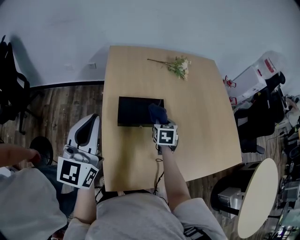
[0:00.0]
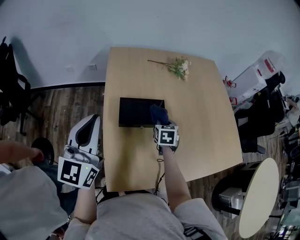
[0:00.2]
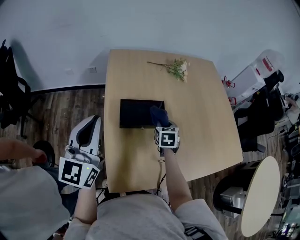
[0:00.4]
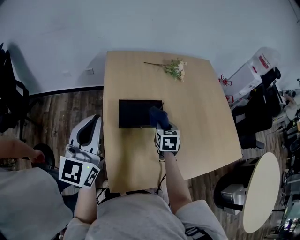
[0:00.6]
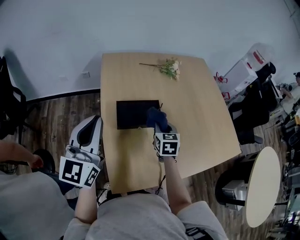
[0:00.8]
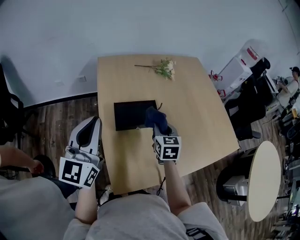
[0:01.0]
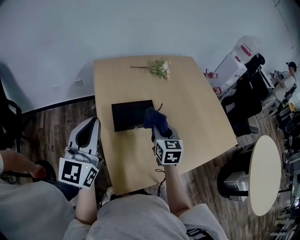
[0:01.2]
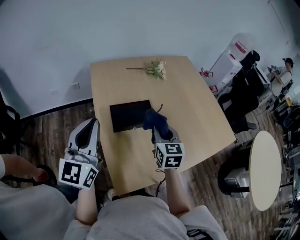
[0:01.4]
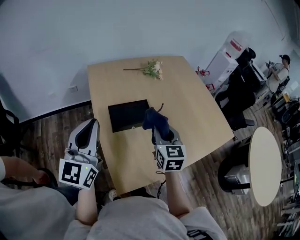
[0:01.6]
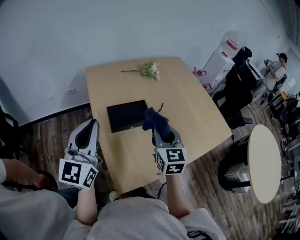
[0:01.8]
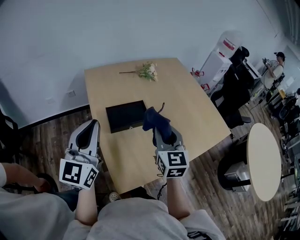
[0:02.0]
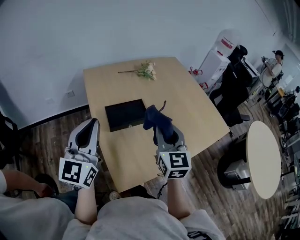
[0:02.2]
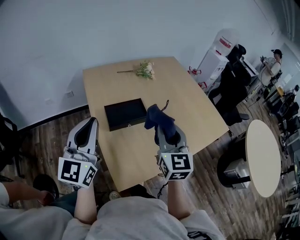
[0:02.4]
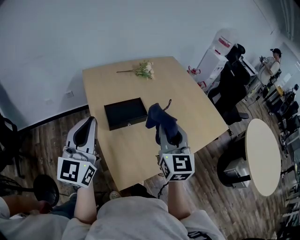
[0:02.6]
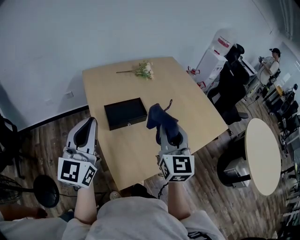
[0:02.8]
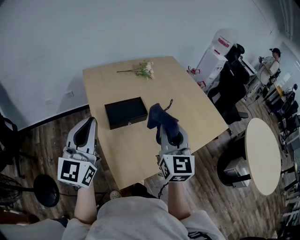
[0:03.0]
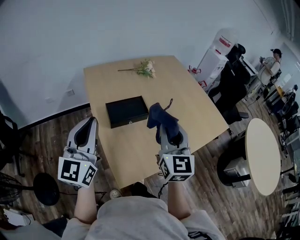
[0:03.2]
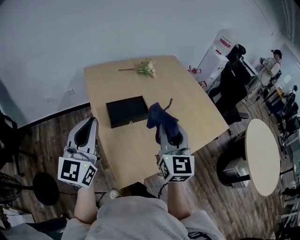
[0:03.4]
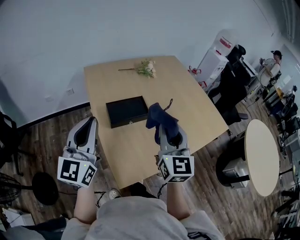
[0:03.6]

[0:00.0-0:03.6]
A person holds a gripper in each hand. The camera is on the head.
0:00.0 to 0:01.8: The right gripper travels upward and backward by roughly 25 cm, and tips its fingers upward by approximately 30 degrees; the left gripper ends up some 5 cm from where it was.
0:01.8 to 0:03.6: The right gripper is displaced upward and backward by about 10 cm.

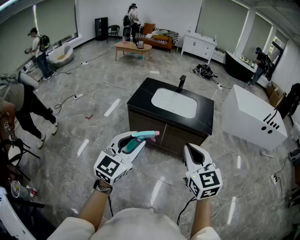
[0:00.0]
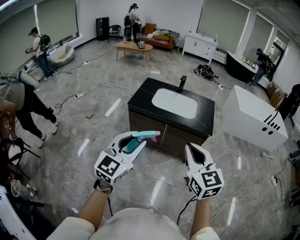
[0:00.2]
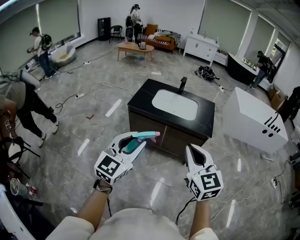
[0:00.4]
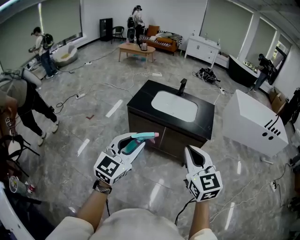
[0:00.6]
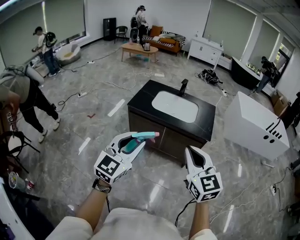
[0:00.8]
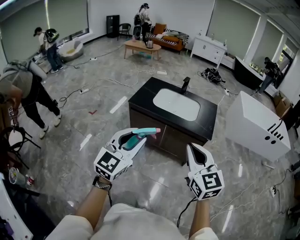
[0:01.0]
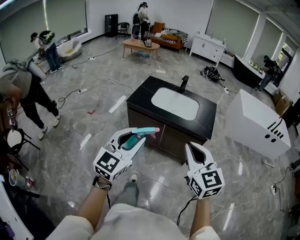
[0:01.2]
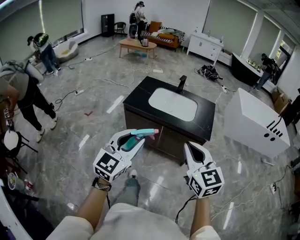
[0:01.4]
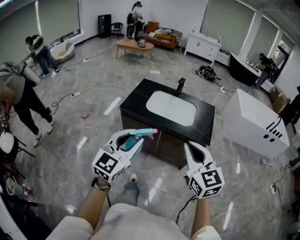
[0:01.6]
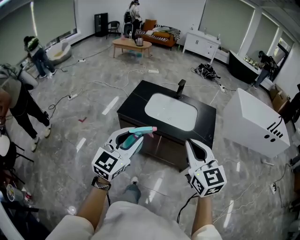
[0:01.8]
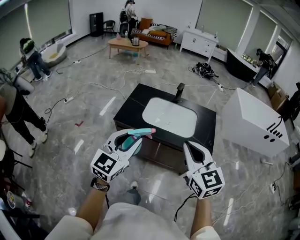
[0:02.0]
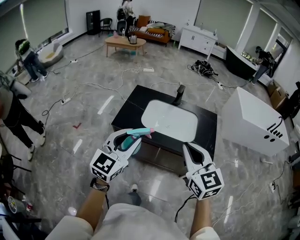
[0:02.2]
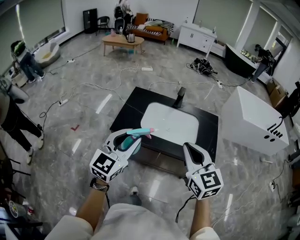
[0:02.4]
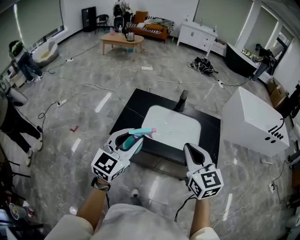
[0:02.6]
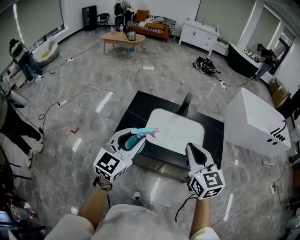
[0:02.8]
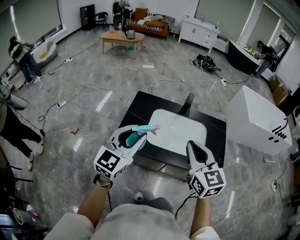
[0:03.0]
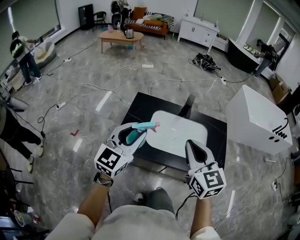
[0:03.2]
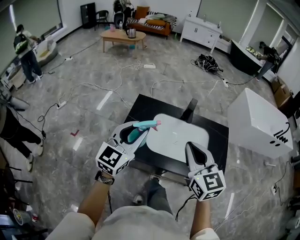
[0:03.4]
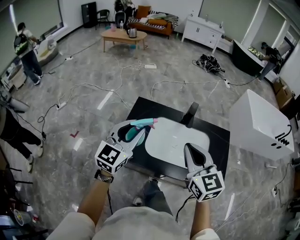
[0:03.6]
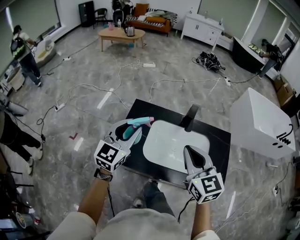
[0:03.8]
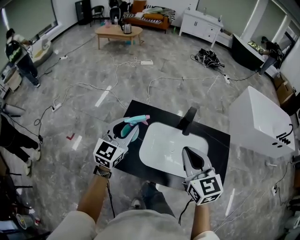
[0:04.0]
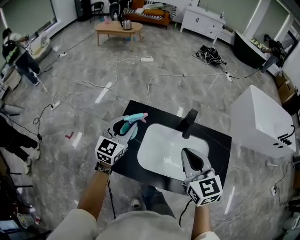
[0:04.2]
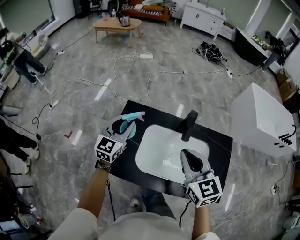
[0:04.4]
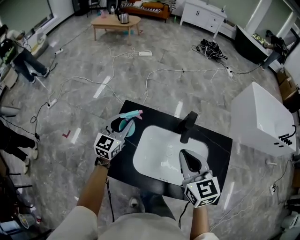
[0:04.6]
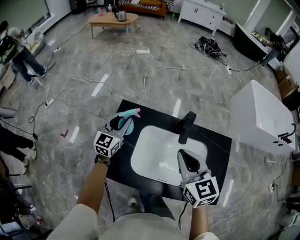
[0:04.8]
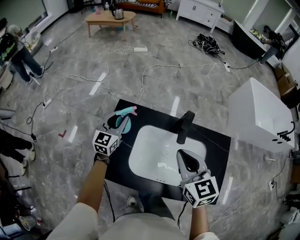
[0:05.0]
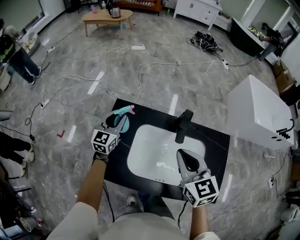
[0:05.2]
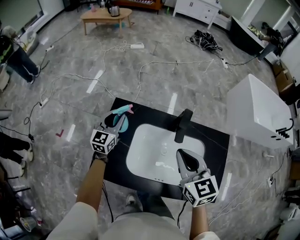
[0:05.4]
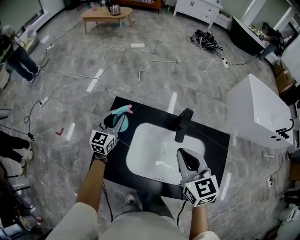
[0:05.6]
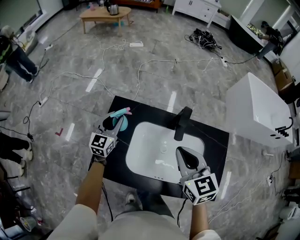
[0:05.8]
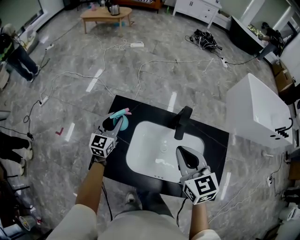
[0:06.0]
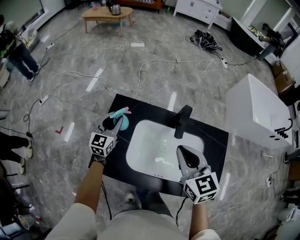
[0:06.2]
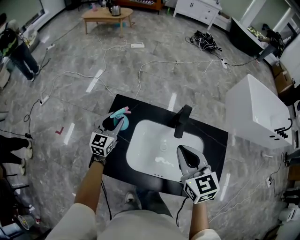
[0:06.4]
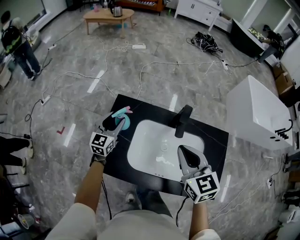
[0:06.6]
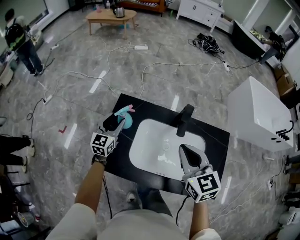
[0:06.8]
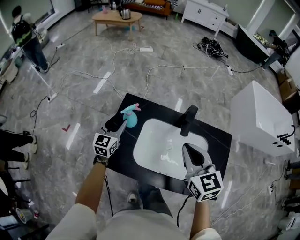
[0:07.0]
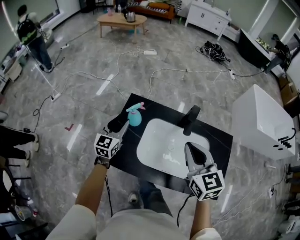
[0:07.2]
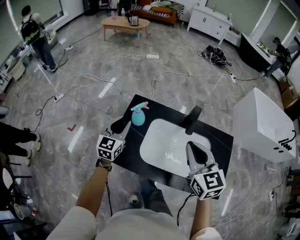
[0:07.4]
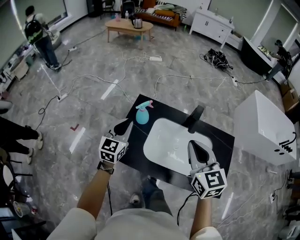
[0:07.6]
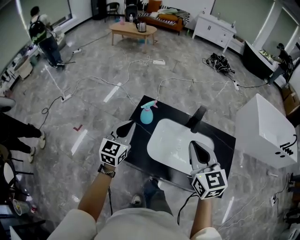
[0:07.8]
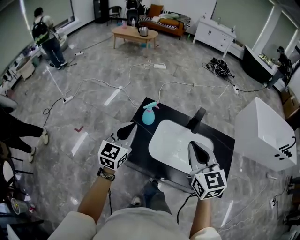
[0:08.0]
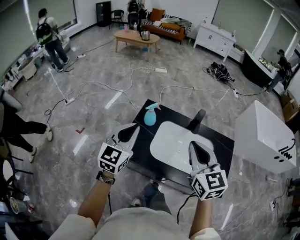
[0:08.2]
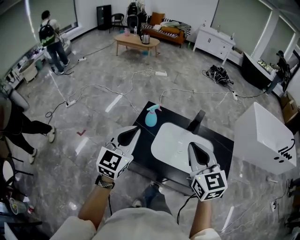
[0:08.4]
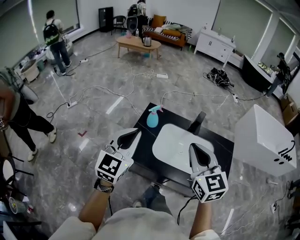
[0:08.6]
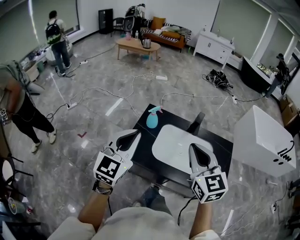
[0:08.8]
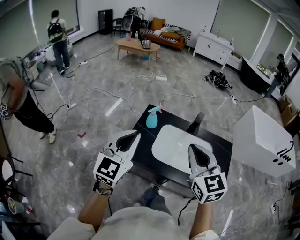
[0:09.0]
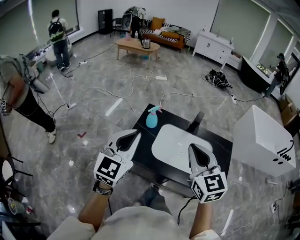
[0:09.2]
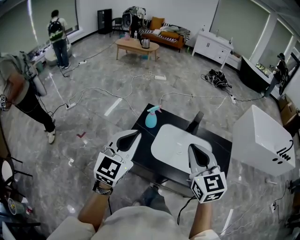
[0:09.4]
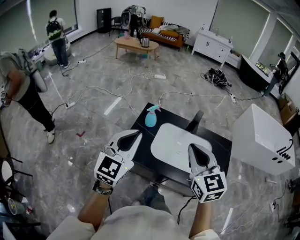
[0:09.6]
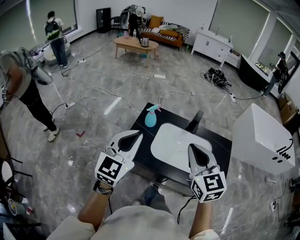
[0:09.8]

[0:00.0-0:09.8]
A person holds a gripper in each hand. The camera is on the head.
0:00.0 to 0:01.4: The grippers both shift forward by about 5 cm.
0:01.4 to 0:02.8: The two grippers go approximately 40 cm forward.
0:02.8 to 0:04.2: The two grippers go about 25 cm forward.
0:04.2 to 0:05.6: The right gripper heads forward and downward, covering approximately 10 cm. The left gripper goes some 15 cm downward and forward.
0:05.6 to 0:07.0: The left gripper is displaced backward by roughly 5 cm.
0:07.0 to 0:08.4: The right gripper goes roughly 20 cm backward, upward and to the left; the left gripper travels backward and upward by about 30 cm, and closes up.
0:08.4 to 0:09.8: The left gripper changes place by approximately 5 cm.

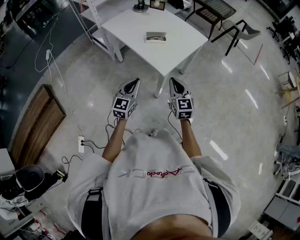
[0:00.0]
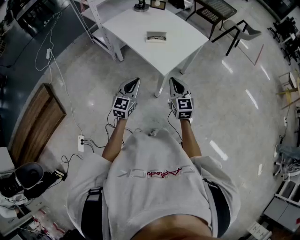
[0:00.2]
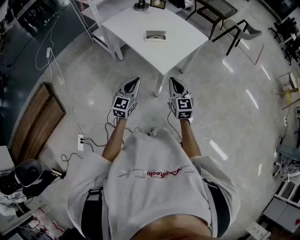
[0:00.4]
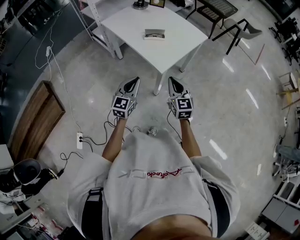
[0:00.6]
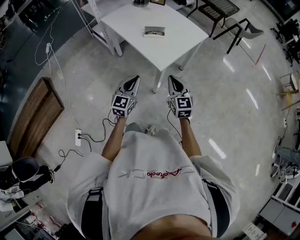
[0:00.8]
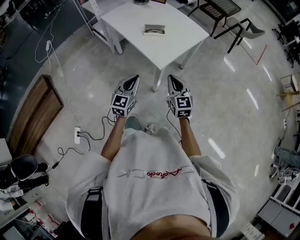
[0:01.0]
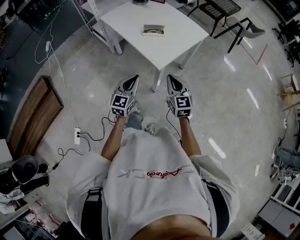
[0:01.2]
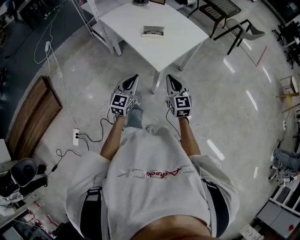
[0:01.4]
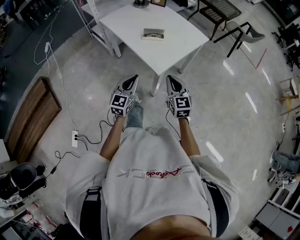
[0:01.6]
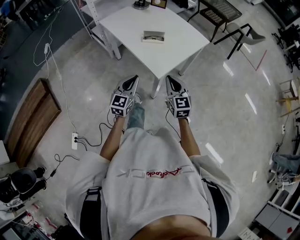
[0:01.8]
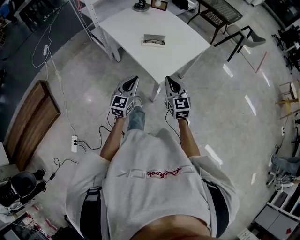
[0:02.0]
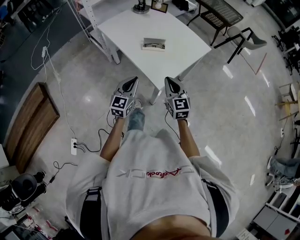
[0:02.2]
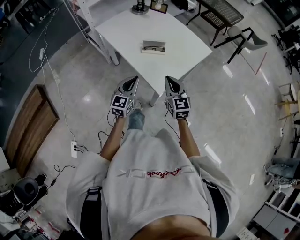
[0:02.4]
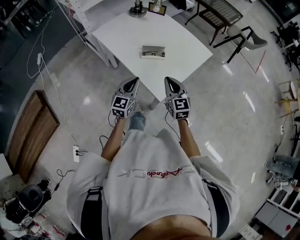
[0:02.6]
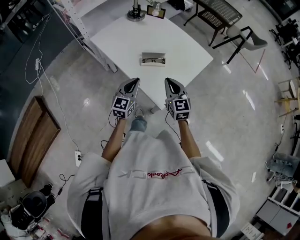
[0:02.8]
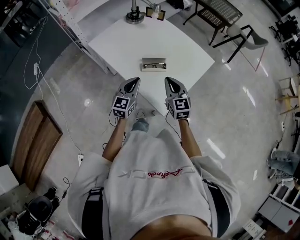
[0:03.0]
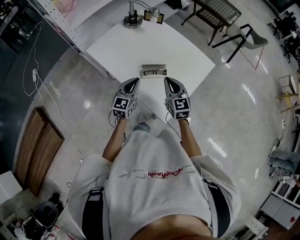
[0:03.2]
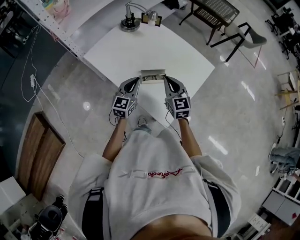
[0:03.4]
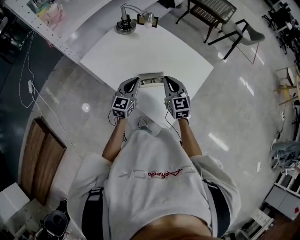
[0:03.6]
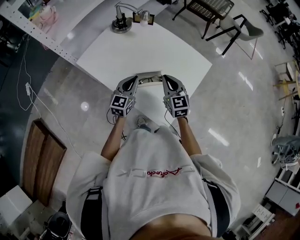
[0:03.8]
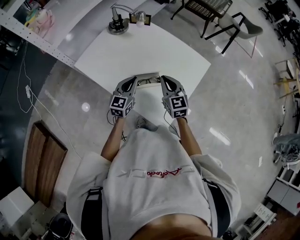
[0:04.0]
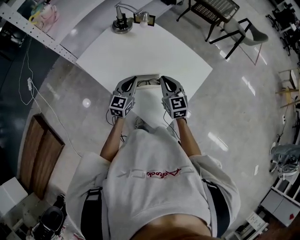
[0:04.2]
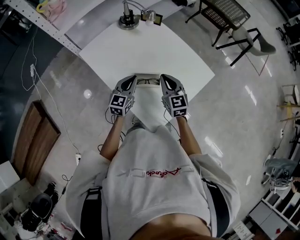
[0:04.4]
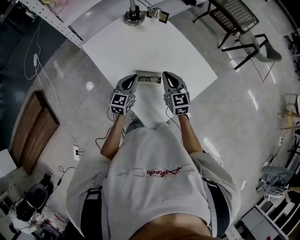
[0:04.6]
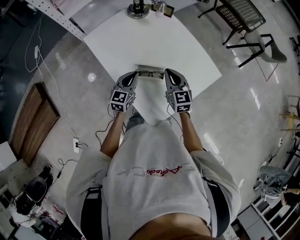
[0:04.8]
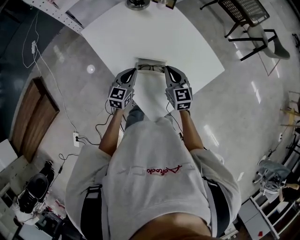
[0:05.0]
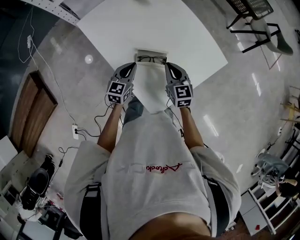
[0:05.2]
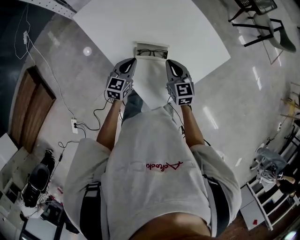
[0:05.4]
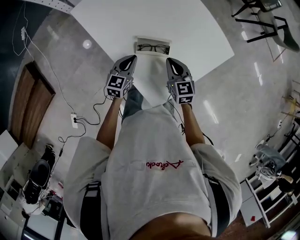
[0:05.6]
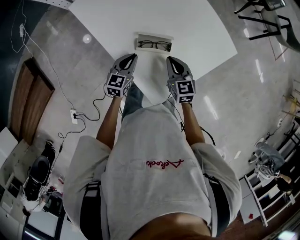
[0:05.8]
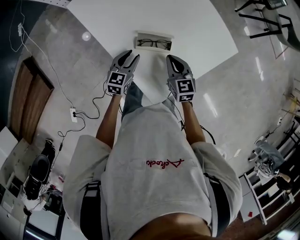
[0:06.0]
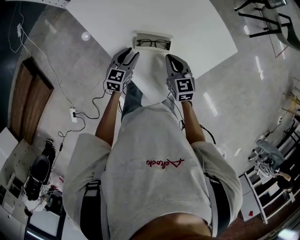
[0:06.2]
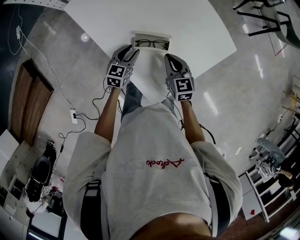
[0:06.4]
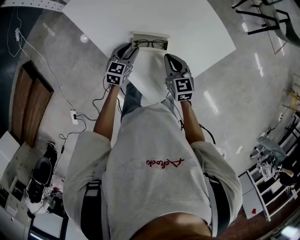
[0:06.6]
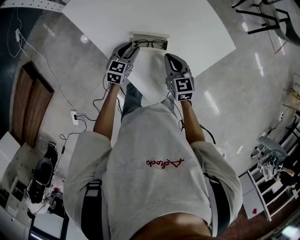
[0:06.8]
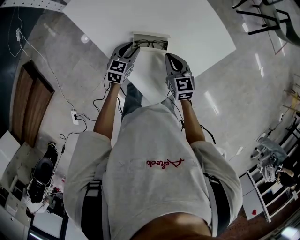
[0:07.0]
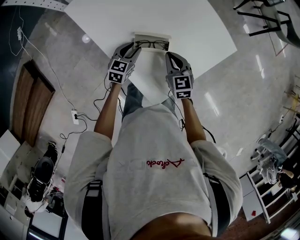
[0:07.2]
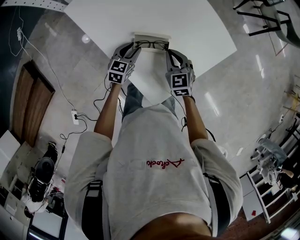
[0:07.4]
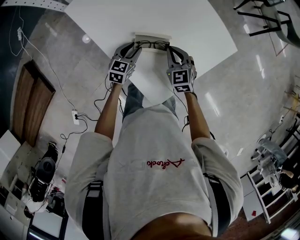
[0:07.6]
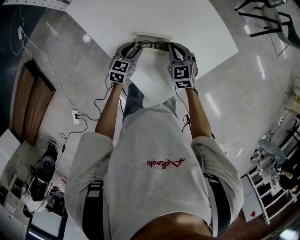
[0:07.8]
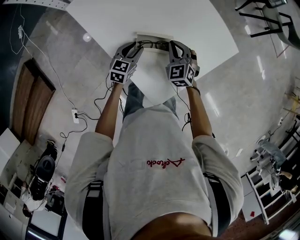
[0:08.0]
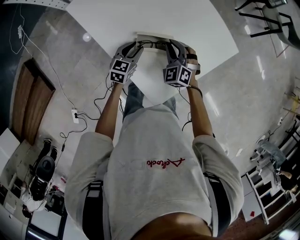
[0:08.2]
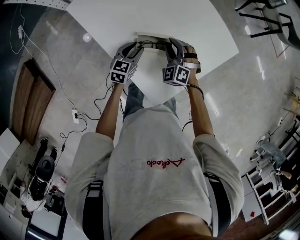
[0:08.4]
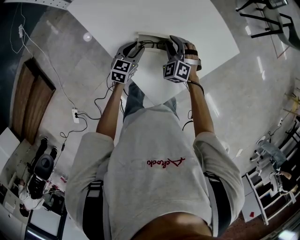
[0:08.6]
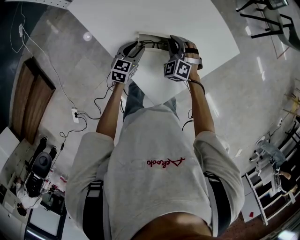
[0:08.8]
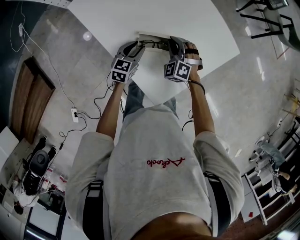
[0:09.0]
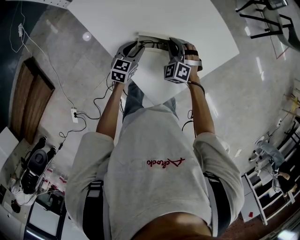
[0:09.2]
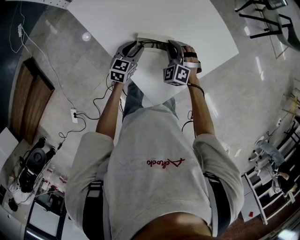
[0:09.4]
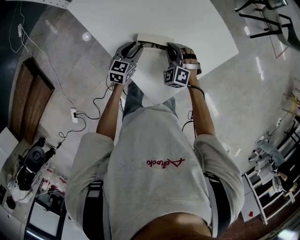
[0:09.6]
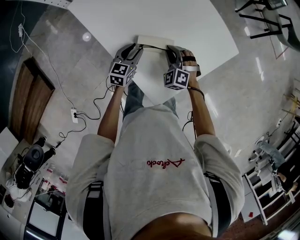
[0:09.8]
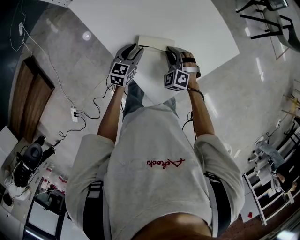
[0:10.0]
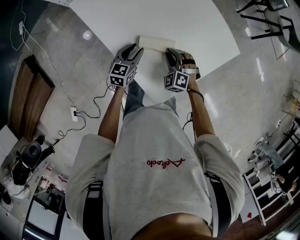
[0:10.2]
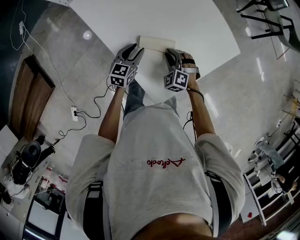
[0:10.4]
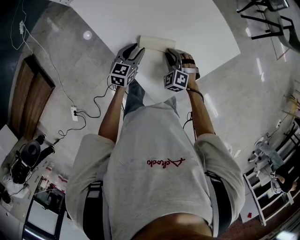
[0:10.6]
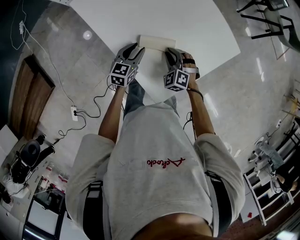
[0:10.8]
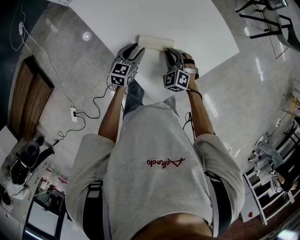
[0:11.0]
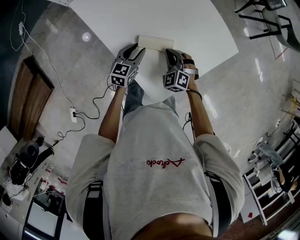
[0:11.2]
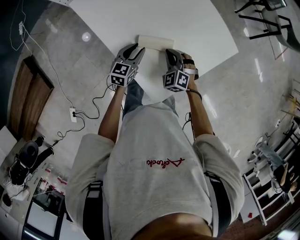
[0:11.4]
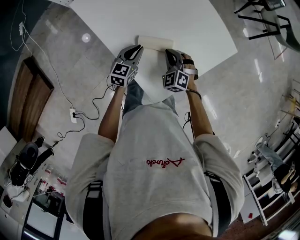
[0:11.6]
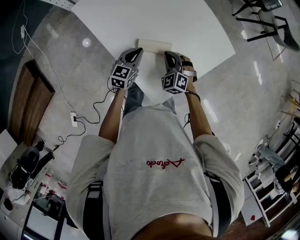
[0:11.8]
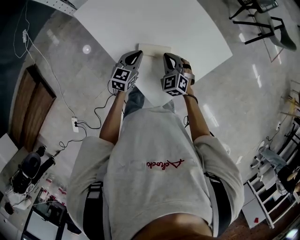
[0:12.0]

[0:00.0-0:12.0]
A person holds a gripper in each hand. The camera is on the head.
0:00.0 to 0:01.6: The grippers make only small movements.
0:01.6 to 0:03.0: The two grippers go some 25 cm forward.
0:03.0 to 0:04.4: The grippers both shift forward by approximately 15 cm.
0:04.4 to 0:06.0: Both grippers move downward, roughly 15 cm. The left gripper opens.
0:06.0 to 0:07.6: The grippers make only small movements.
0:07.6 to 0:09.0: The right gripper twists roughly 40 degrees counterclockwise, seen from behind, and opens and closes again.
0:09.0 to 0:10.4: The right gripper moves backward, some 5 cm.
0:10.4 to 0:12.0: The right gripper moves upward, some 5 cm, turns by some 20 degrees, and closes its fingers. Meanwhile the left gripper closes up.
